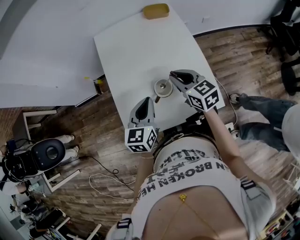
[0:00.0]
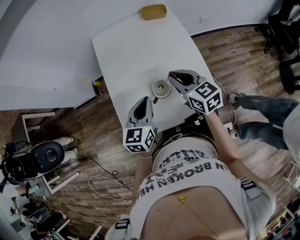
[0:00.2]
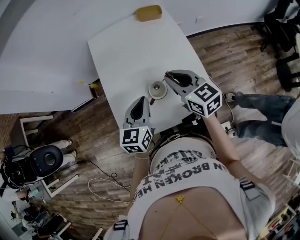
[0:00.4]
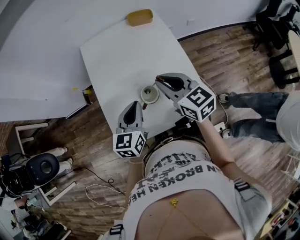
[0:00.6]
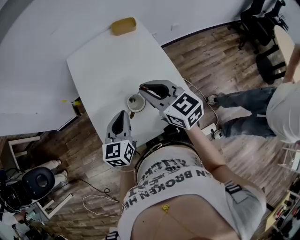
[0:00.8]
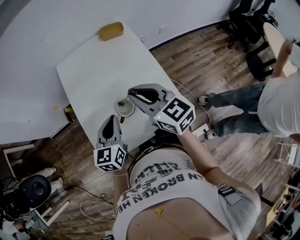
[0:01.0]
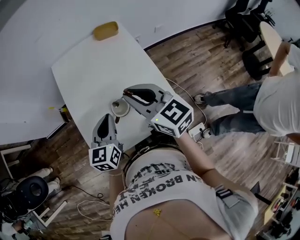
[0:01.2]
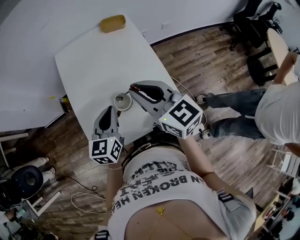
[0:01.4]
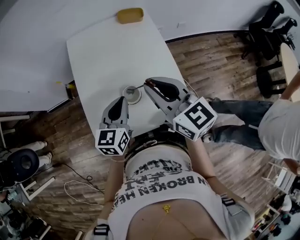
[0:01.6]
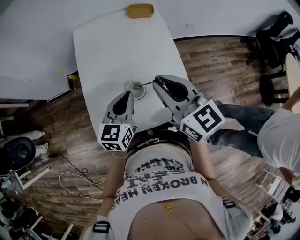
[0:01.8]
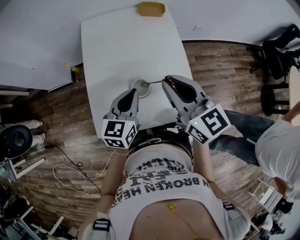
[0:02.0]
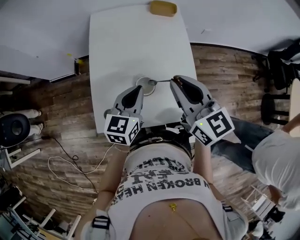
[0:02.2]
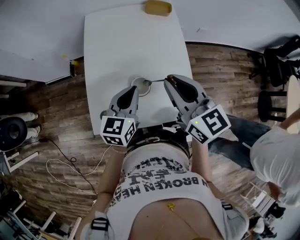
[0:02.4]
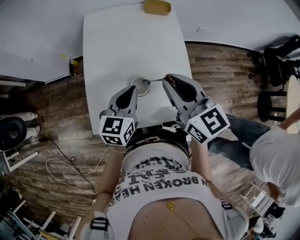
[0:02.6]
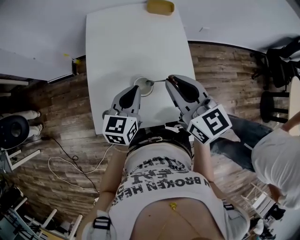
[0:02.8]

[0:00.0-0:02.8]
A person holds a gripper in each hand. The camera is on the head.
0.0 to 1.4 s: The left gripper ends up roughly 5 cm from where it was, while the right gripper heads upward, covering about 15 cm.
1.4 to 2.8 s: The grippers make only small movements.

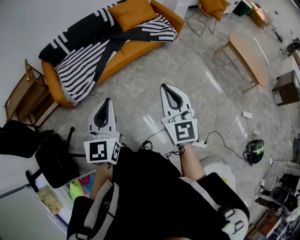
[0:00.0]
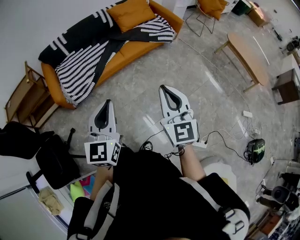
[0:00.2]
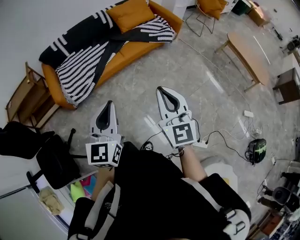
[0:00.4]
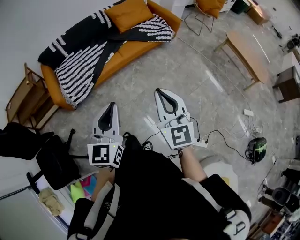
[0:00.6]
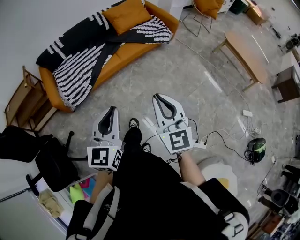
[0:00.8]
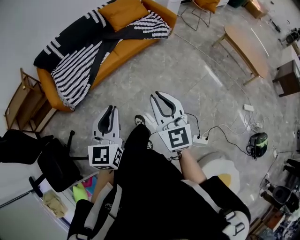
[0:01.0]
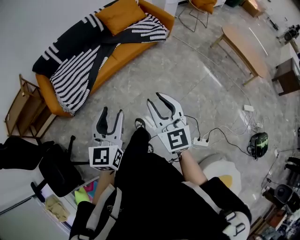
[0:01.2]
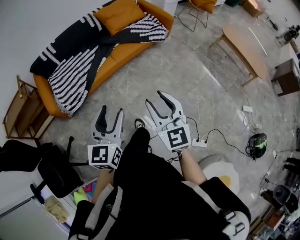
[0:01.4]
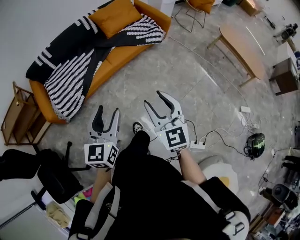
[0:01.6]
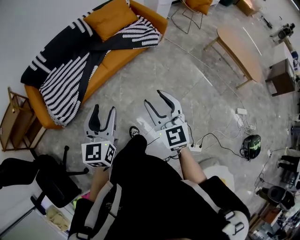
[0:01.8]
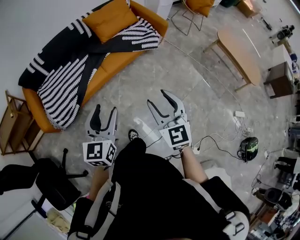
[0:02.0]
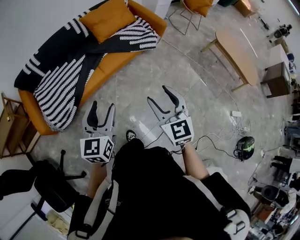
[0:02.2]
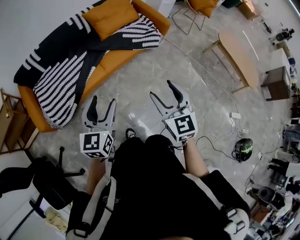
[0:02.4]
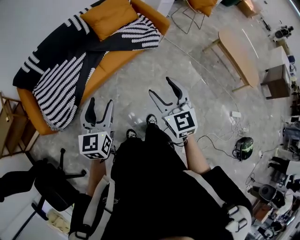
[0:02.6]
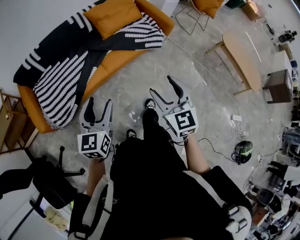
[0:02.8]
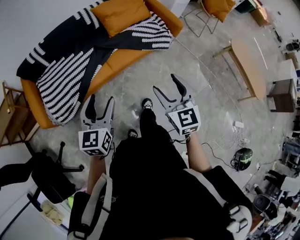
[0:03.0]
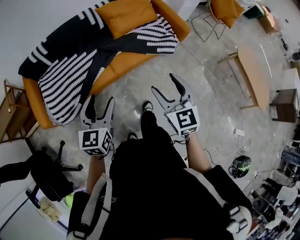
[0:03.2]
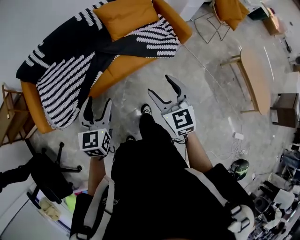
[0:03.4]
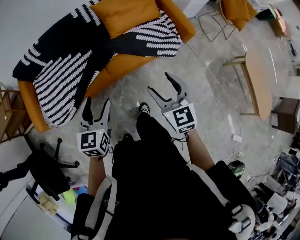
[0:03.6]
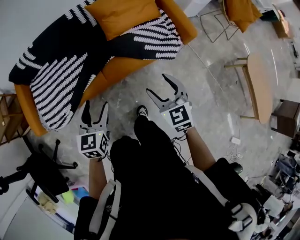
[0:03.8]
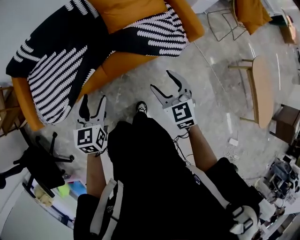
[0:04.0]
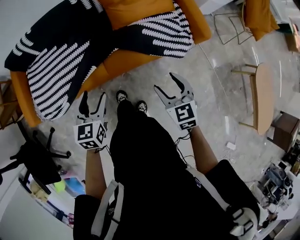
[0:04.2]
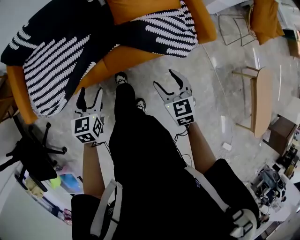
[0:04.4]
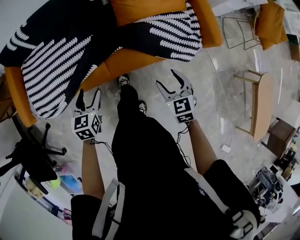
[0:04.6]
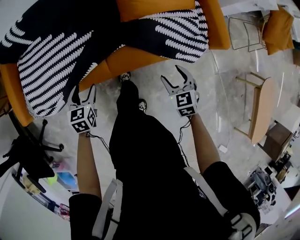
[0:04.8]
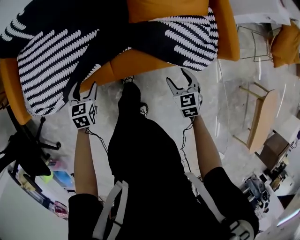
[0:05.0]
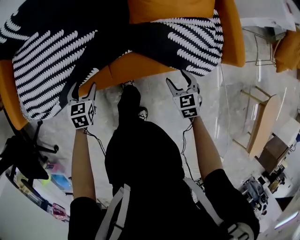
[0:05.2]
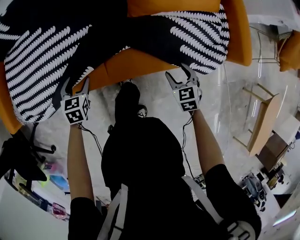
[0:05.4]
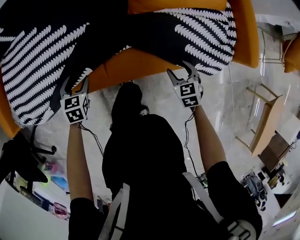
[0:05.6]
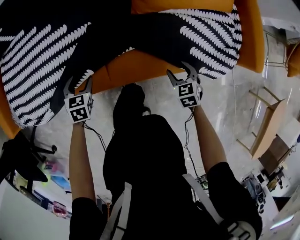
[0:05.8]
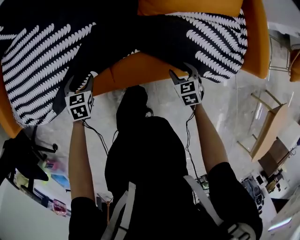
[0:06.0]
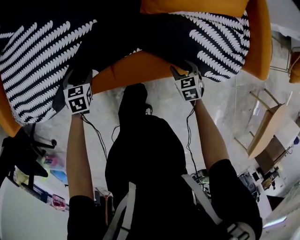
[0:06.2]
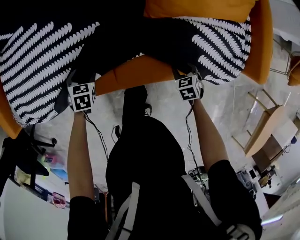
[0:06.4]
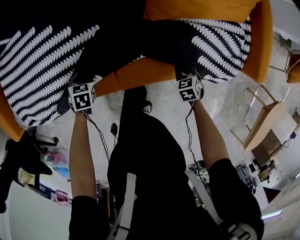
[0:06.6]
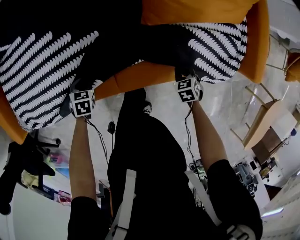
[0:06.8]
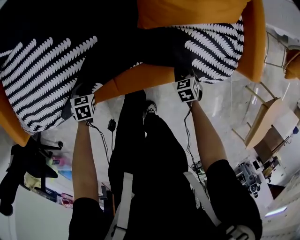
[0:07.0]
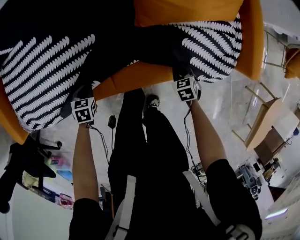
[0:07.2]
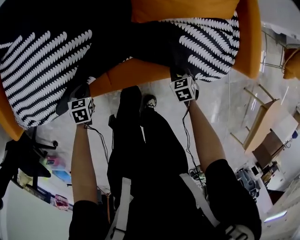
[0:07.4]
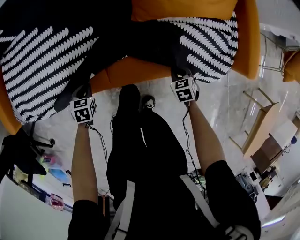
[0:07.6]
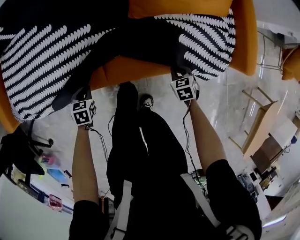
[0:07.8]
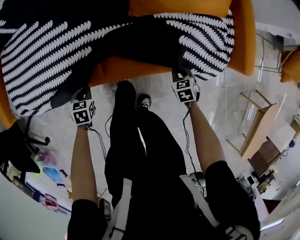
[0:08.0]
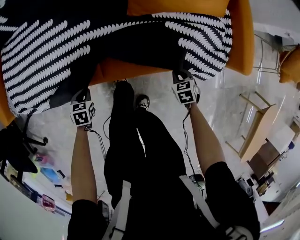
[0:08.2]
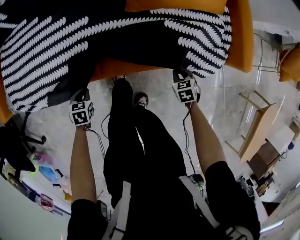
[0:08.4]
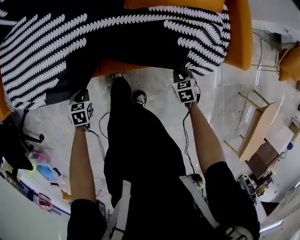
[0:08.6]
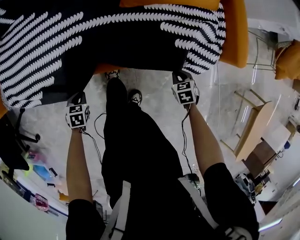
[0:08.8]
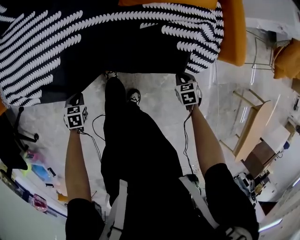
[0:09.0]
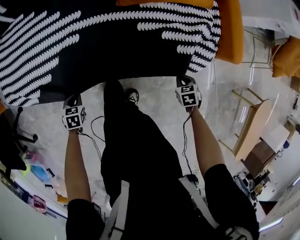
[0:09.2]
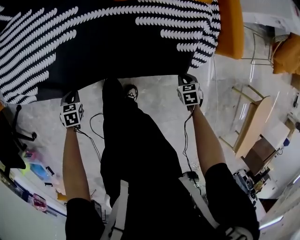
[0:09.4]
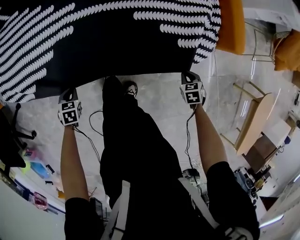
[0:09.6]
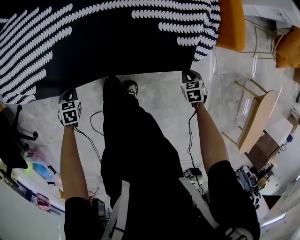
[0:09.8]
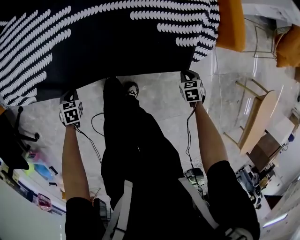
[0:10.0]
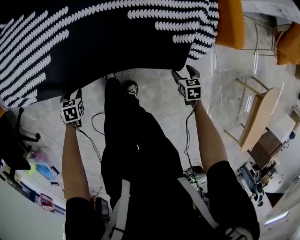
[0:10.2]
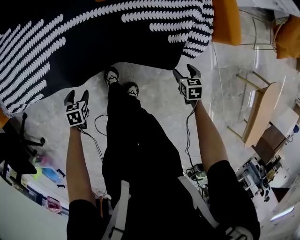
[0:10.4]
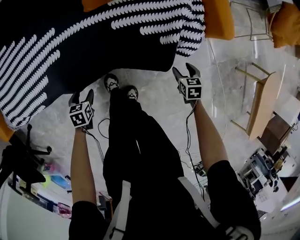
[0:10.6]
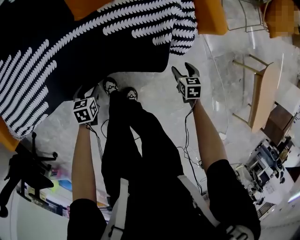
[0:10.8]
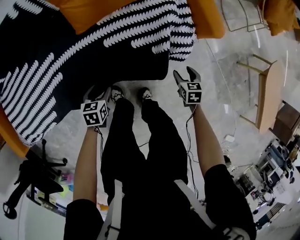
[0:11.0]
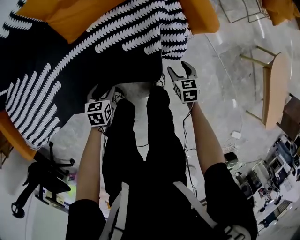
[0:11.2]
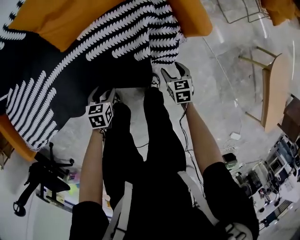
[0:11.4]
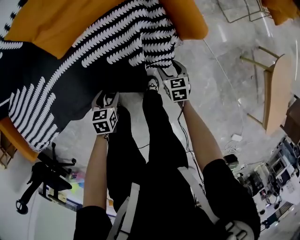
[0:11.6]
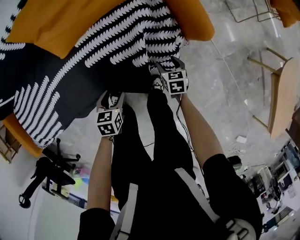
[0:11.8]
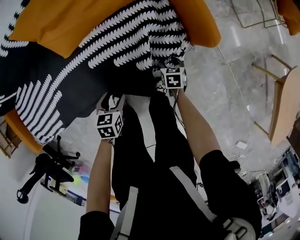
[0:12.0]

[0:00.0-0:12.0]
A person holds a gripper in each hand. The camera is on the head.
0.0 to 1.6 s: The right gripper shifts some 10 cm forward and downward, and opens, while the left gripper shifts approximately 15 cm forward, to the right and downward, and opens.
1.6 to 3.0 s: Both grippers move forward, about 25 cm.
3.0 to 4.4 s: Both grippers travel together forward and downward, approximately 40 cm. The right gripper turns by approximately 30 degrees. The left gripper turns by roughly 30 degrees.
4.4 to 6.0 s: The two grippers go roughly 50 cm downward and forward. The left gripper turns by roughly 30 degrees. Meanwhile the right gripper swivels approximately 20 degrees.
6.0 to 7.6 s: The right gripper closes up. The left gripper closes up.
7.6 to 9.0 s: The right gripper goes roughly 15 cm backward and to the right; the left gripper shifts some 15 cm backward.
9.0 to 10.4 s: The right gripper ends up some 5 cm from where it was, and opens, while the left gripper opens up.
10.4 to 12.0 s: The right gripper heads forward, downward and to the right, covering roughly 15 cm, and changes its angle by some 20 degrees. Meanwhile the left gripper is displaced to the right and forward by about 35 cm.

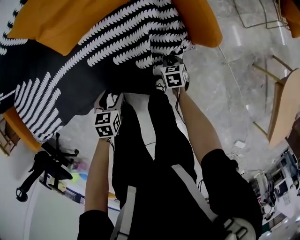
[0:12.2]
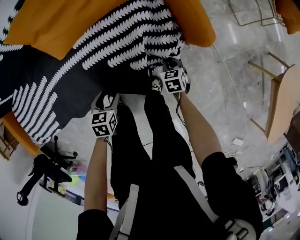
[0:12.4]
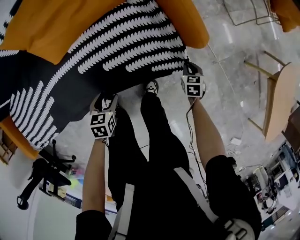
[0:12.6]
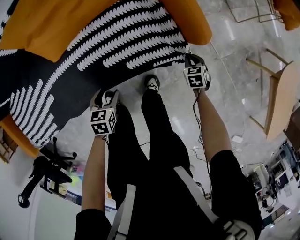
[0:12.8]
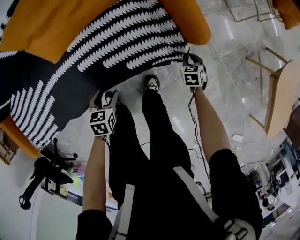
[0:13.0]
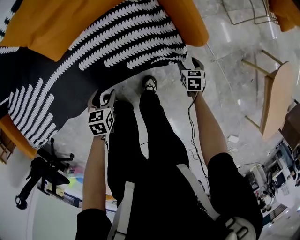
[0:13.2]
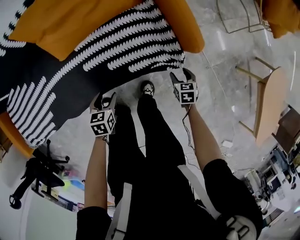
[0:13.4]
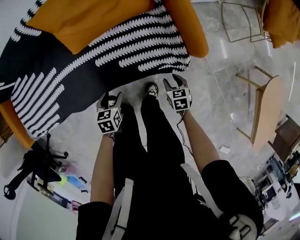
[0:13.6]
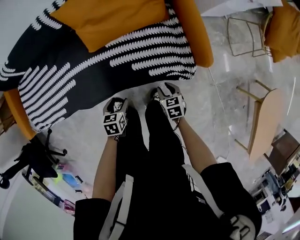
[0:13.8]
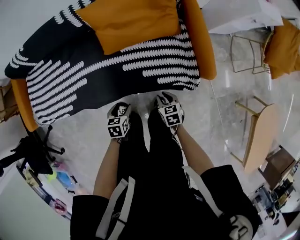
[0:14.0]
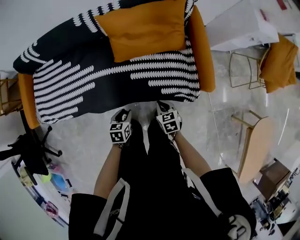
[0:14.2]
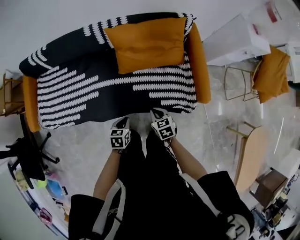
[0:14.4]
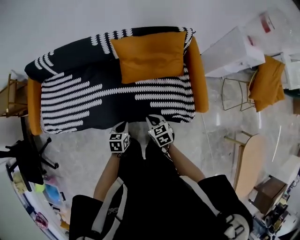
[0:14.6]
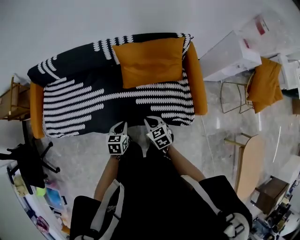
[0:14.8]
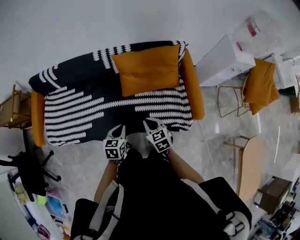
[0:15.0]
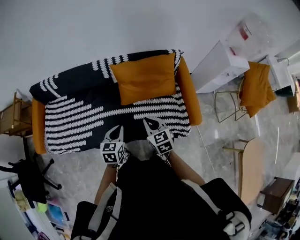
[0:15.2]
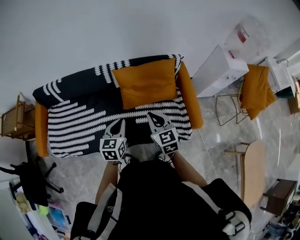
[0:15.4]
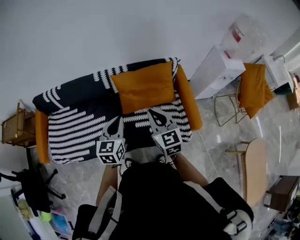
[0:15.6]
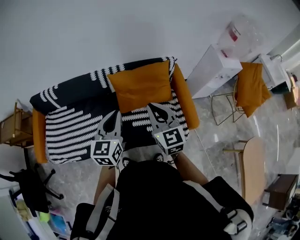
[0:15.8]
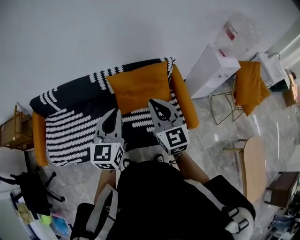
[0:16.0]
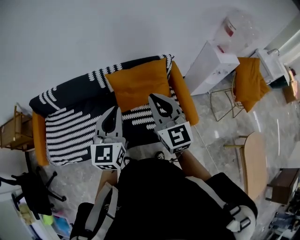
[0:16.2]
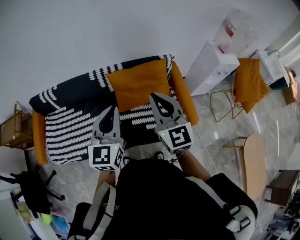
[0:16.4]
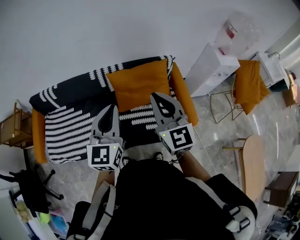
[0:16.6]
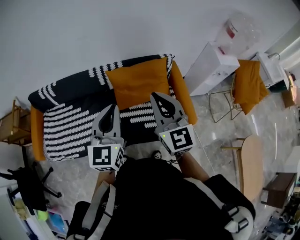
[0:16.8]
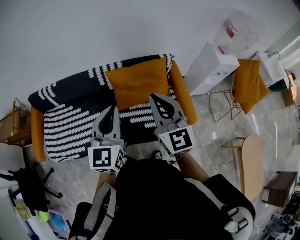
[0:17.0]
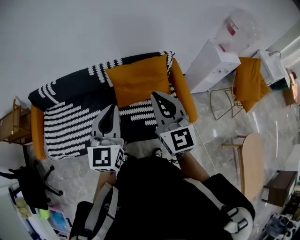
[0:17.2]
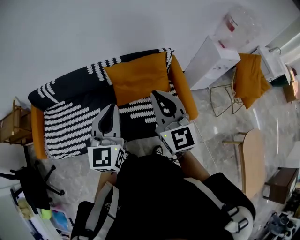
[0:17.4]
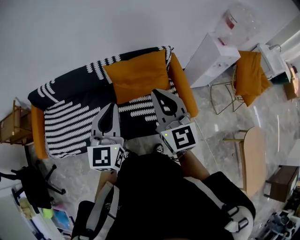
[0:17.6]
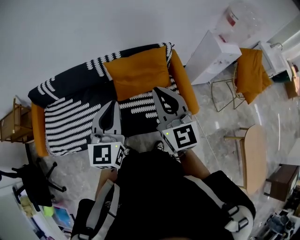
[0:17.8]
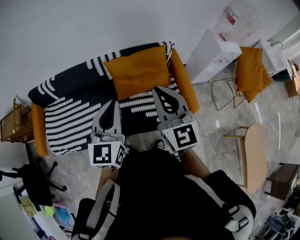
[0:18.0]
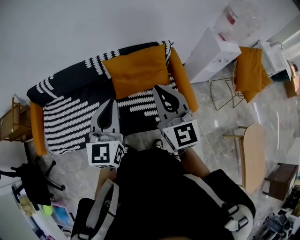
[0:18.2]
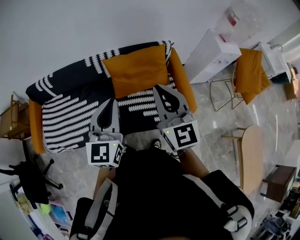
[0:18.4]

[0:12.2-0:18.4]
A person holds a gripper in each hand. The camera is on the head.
12.2 to 13.8 s: The left gripper is displaced upward by roughly 10 cm. The right gripper travels upward by roughly 20 cm, and opens its fingers.
13.8 to 15.4 s: The left gripper moves upward, some 40 cm, tilts its fingers about 40 degrees upward, and closes up; the right gripper moves upward and to the left, some 50 cm, tips its fingers upward by about 30 degrees, and closes its fingers.
15.4 to 16.8 s: Both grippers move upward, about 20 cm. The right gripper rotates approximately 20 degrees. Meanwhile the left gripper changes its angle by about 30 degrees.
16.8 to 18.4 s: The grippers move only a little.

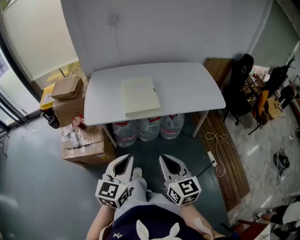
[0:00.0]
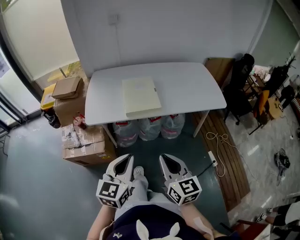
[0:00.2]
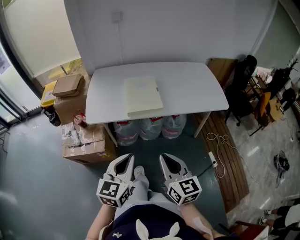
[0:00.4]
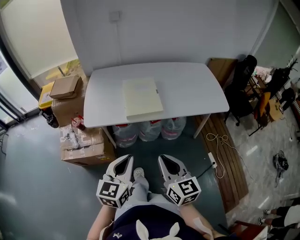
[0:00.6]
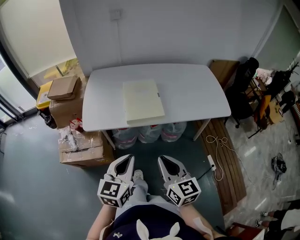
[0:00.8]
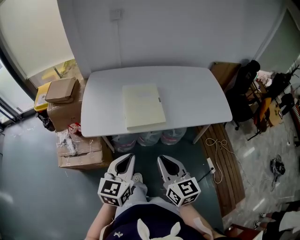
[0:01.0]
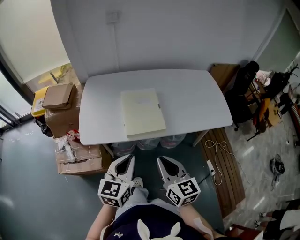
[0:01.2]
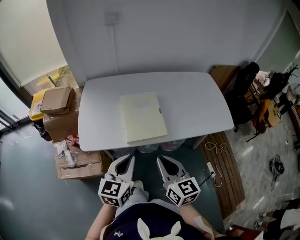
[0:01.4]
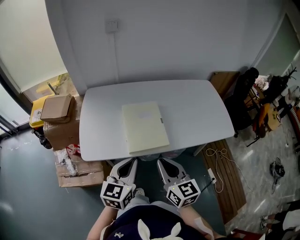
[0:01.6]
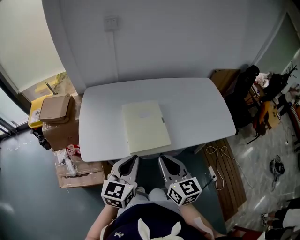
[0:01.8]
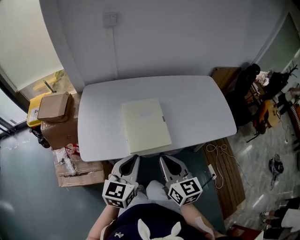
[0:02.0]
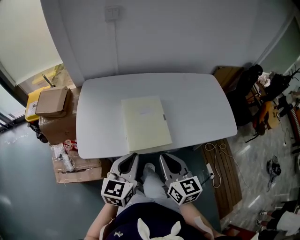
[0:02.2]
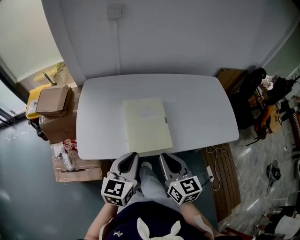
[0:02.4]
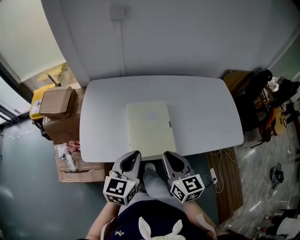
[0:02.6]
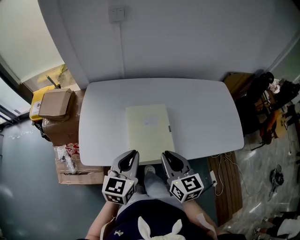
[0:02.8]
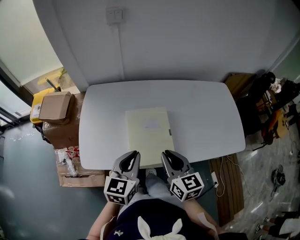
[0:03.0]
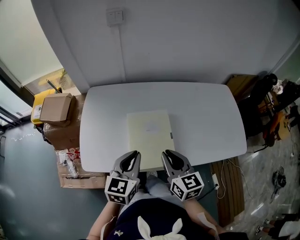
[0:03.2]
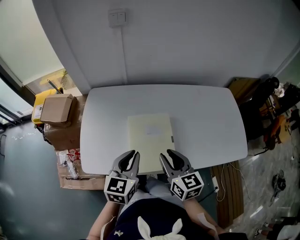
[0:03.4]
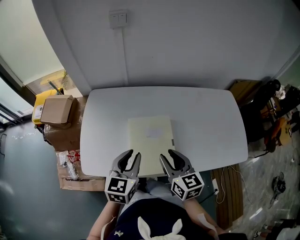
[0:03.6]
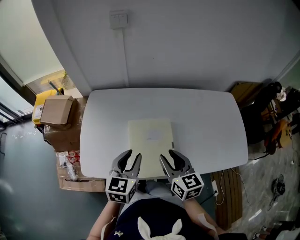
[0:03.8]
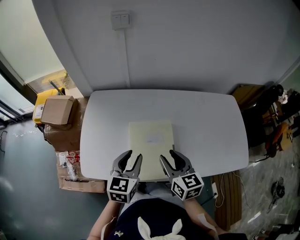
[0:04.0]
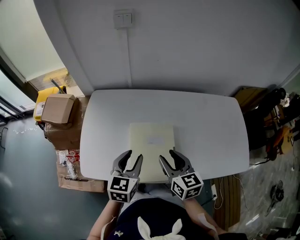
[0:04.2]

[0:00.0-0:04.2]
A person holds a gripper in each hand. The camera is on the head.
0.0 to 1.4 s: Both grippers move forward, some 20 cm.
1.4 to 2.8 s: Both grippers move forward, some 15 cm.
2.8 to 4.2 s: Both grippers move forward, roughly 10 cm. The right gripper opens its fingers. Meanwhile the left gripper opens.
